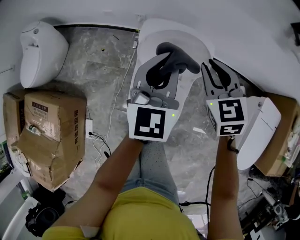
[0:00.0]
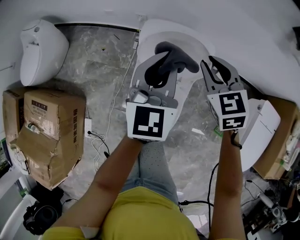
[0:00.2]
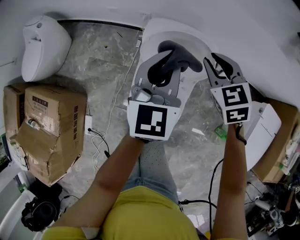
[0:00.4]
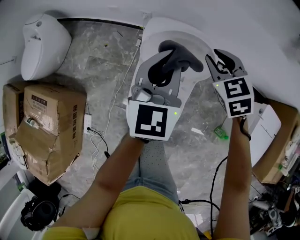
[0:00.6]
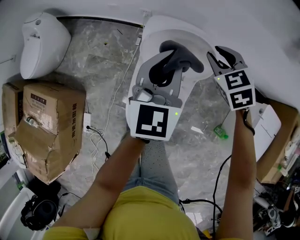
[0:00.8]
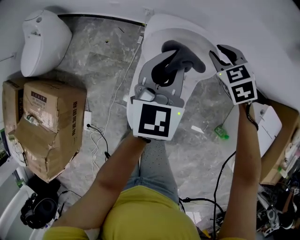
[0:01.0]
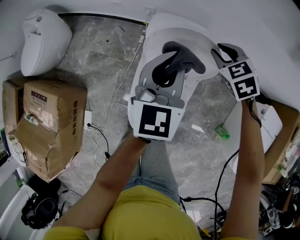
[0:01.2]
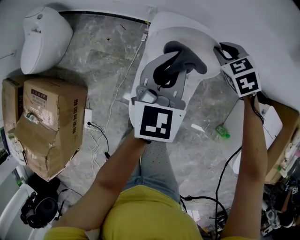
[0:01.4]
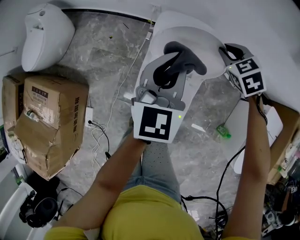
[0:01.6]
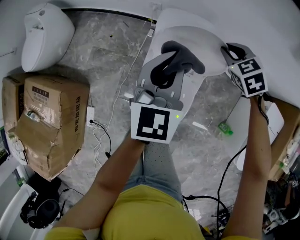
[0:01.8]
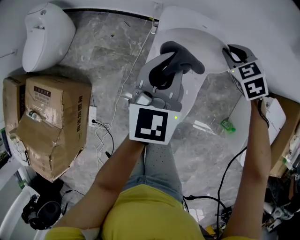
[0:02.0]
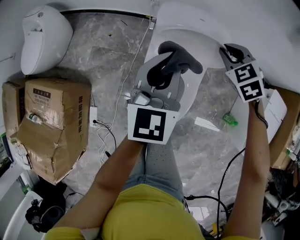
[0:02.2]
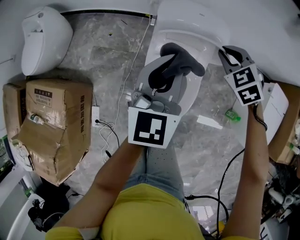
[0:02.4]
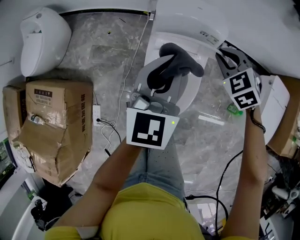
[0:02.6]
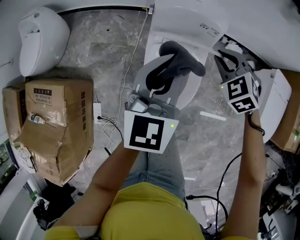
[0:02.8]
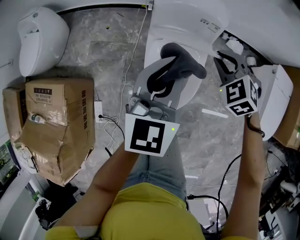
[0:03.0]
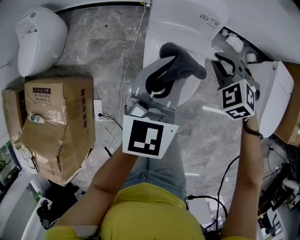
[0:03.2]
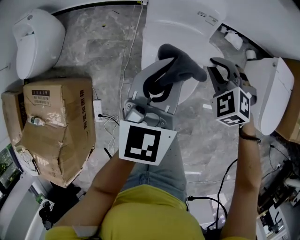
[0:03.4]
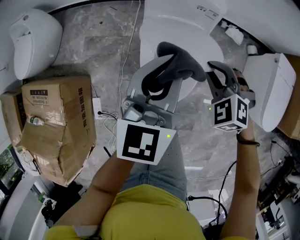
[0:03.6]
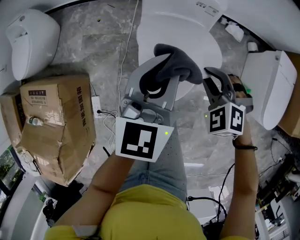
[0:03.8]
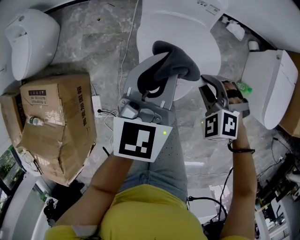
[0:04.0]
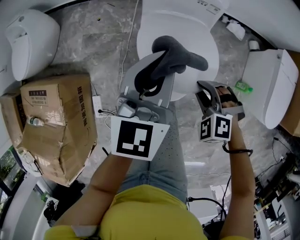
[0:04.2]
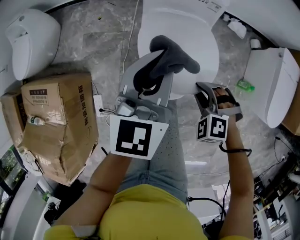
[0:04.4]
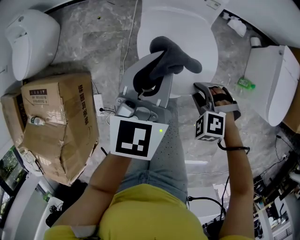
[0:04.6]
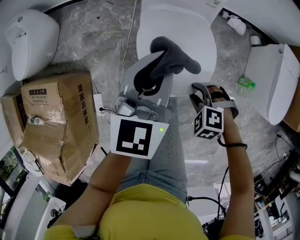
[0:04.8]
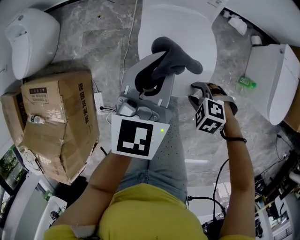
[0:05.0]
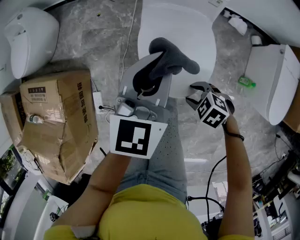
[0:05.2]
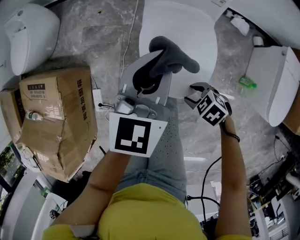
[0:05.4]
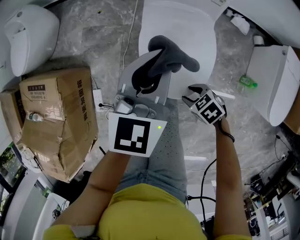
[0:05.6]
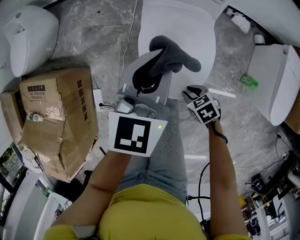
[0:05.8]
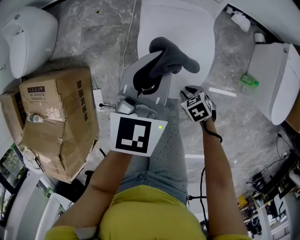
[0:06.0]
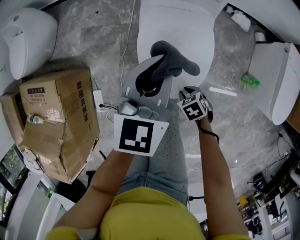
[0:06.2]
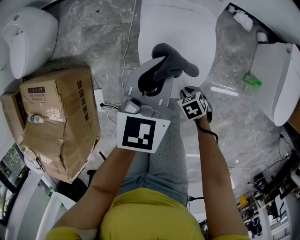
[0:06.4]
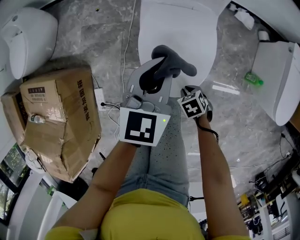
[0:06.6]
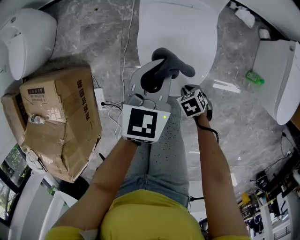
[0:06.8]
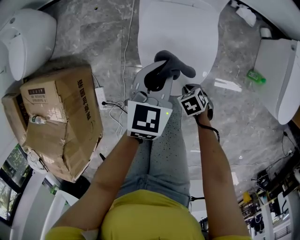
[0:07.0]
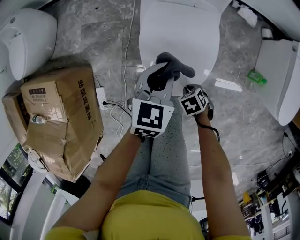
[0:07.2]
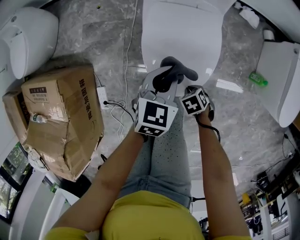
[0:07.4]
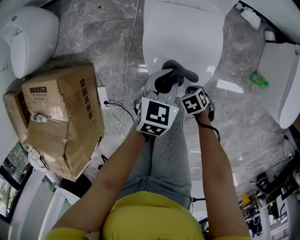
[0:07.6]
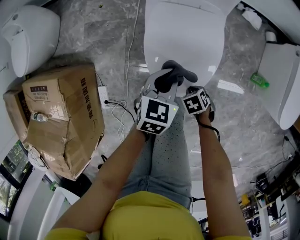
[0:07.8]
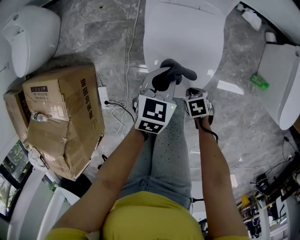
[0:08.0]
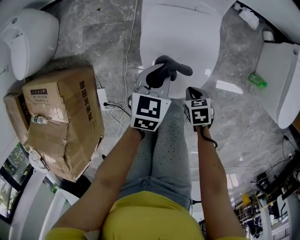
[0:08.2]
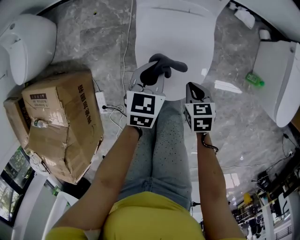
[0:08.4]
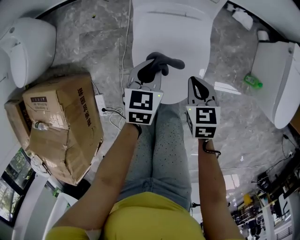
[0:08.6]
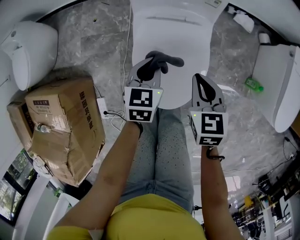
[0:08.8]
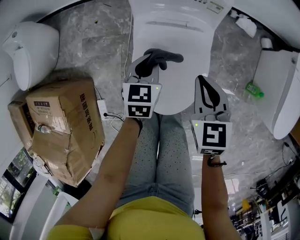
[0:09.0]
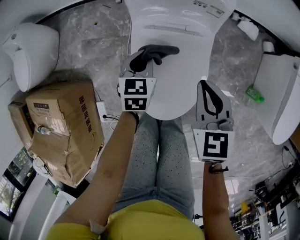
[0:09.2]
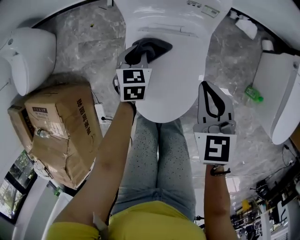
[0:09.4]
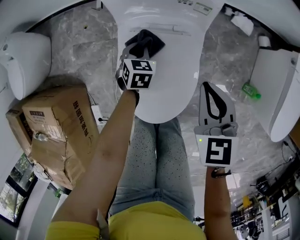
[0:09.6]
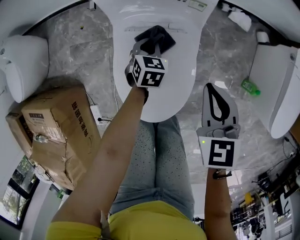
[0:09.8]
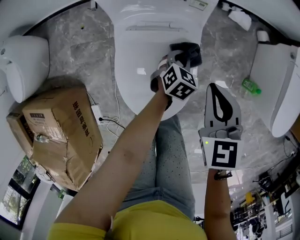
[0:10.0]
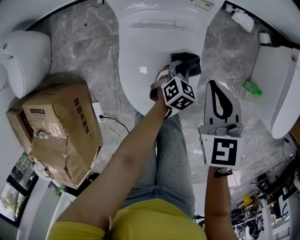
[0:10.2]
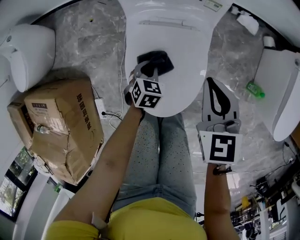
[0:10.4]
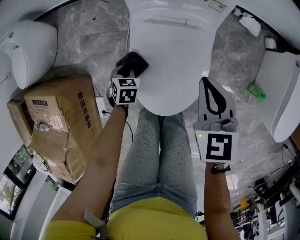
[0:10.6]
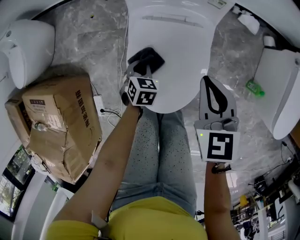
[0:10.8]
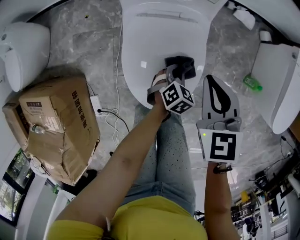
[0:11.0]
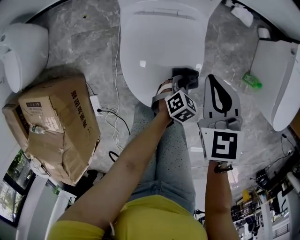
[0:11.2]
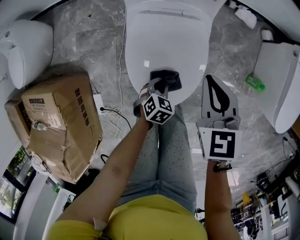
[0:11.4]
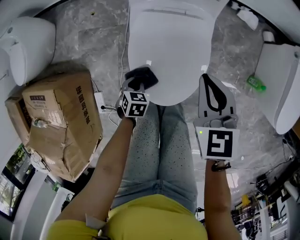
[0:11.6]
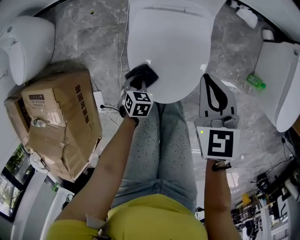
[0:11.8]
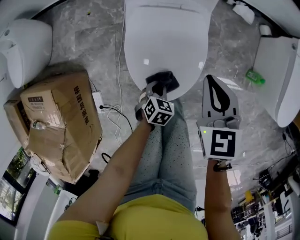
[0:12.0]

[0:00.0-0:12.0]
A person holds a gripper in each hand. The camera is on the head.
0:00.0 to 0:01.6: The right gripper heads downward and forward, covering some 10 cm, and turns by some 30 degrees.
0:01.6 to 0:03.0: Both grippers travel together backward, about 20 cm.
0:03.0 to 0:04.4: The right gripper travels backward and downward by roughly 20 cm. The left gripper ends up about 5 cm from where it was.
0:04.4 to 0:06.0: The right gripper is displaced downward by about 15 cm, and rotates around the line of its fingers by approximately 50 degrees, clockwise from behind.
0:06.0 to 0:07.6: The left gripper goes roughly 20 cm downward, and rotates roughly 30 degrees, while the right gripper moves downward, about 10 cm.
0:07.6 to 0:09.0: The left gripper ends up about 15 cm from where it was, while the right gripper goes approximately 25 cm upward, and tilts its fingers about 40 degrees upward.
0:09.0 to 0:10.4: The left gripper travels downward by approximately 15 cm, moves about 20 cm to the right and comes back, and turns by approximately 20 degrees.
0:10.4 to 0:12.0: The left gripper moves approximately 20 cm. The right gripper changes place by some 10 cm.

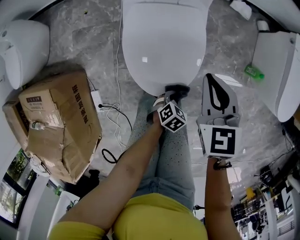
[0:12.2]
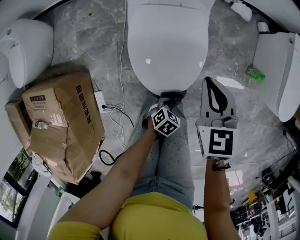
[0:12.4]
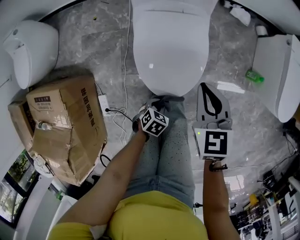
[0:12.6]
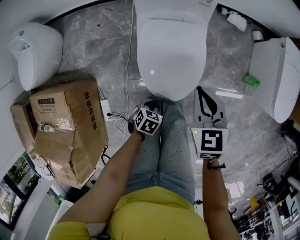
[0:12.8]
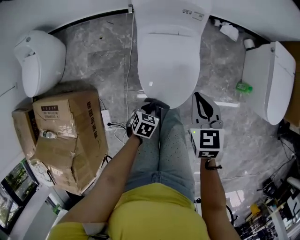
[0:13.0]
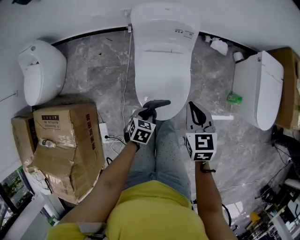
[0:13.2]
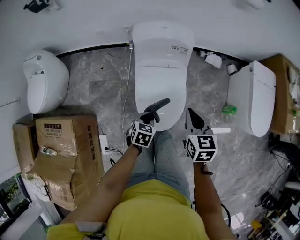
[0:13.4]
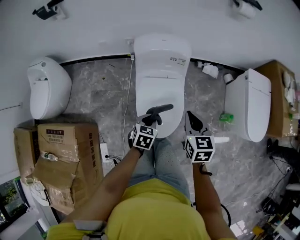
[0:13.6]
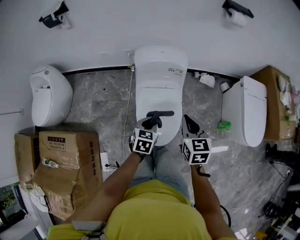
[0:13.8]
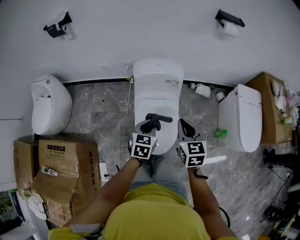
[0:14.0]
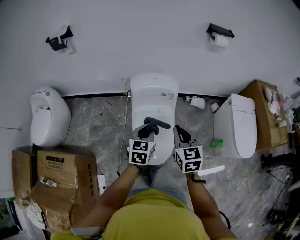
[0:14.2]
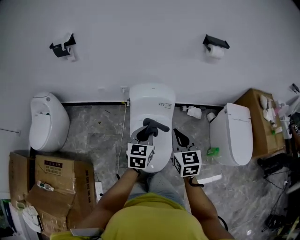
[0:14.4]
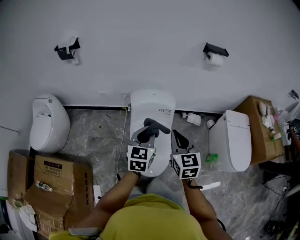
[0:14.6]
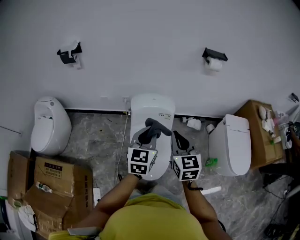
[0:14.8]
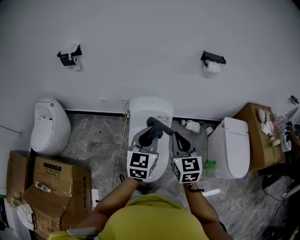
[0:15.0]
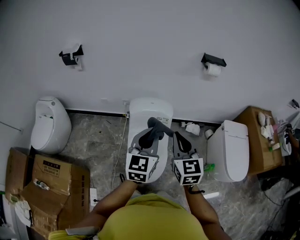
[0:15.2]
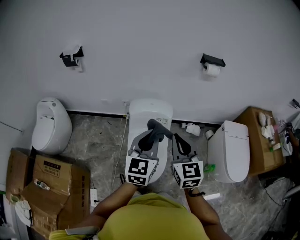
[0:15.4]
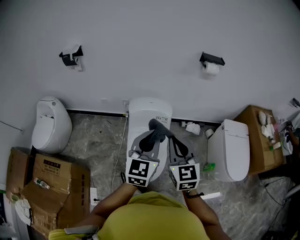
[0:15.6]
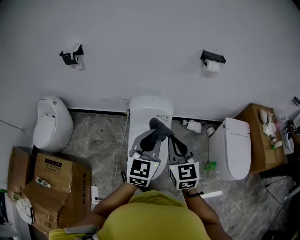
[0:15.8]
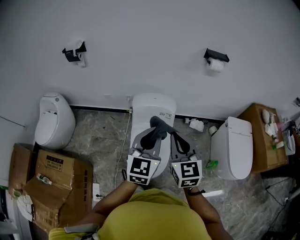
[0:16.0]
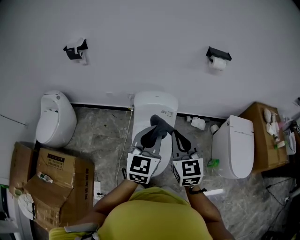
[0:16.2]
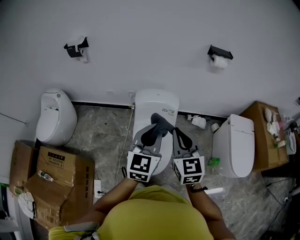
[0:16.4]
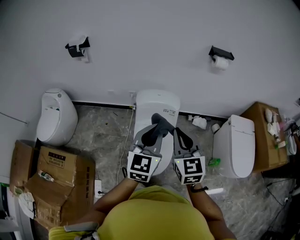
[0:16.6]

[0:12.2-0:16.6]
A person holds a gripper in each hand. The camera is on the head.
0:12.2 to 0:13.6: The left gripper is displaced upward and to the left by some 30 cm, and rotates roughly 30 degrees, while the right gripper travels upward by some 15 cm.
0:13.6 to 0:15.2: The left gripper heads upward, covering about 35 cm, and angles its fingers upward, by roughly 40 degrees, while the right gripper goes approximately 25 cm upward, and changes its angle by some 30 degrees.
0:15.2 to 0:16.6: The grippers move only a little.

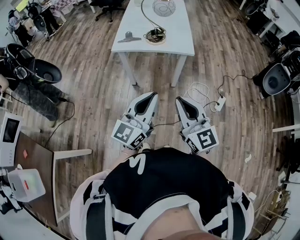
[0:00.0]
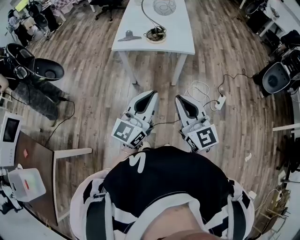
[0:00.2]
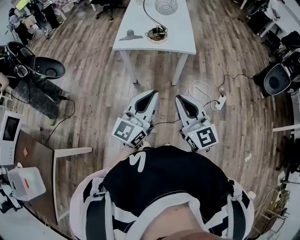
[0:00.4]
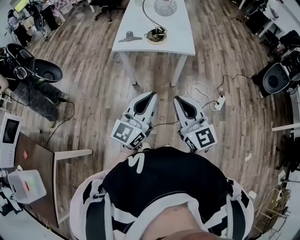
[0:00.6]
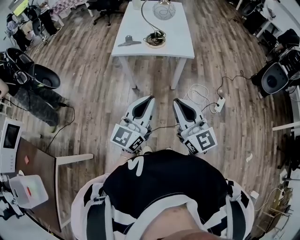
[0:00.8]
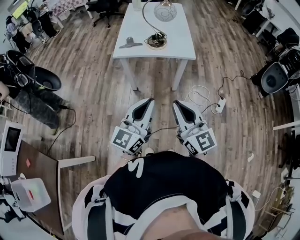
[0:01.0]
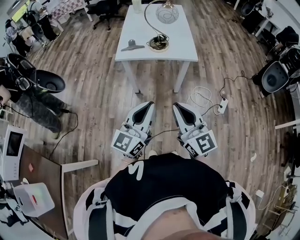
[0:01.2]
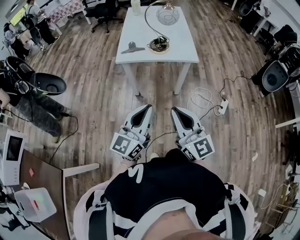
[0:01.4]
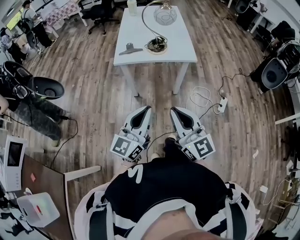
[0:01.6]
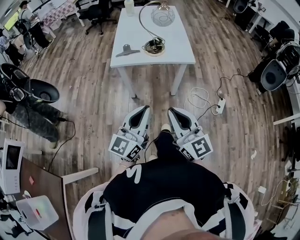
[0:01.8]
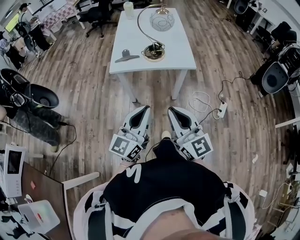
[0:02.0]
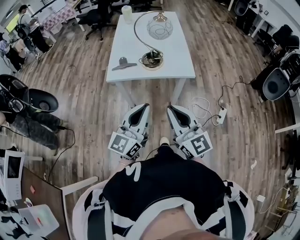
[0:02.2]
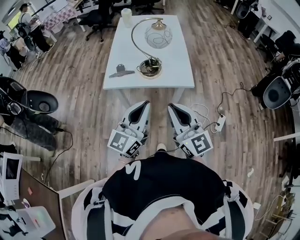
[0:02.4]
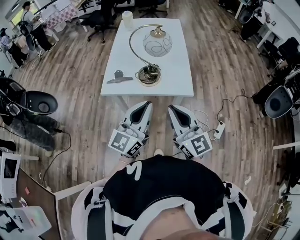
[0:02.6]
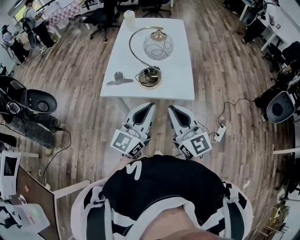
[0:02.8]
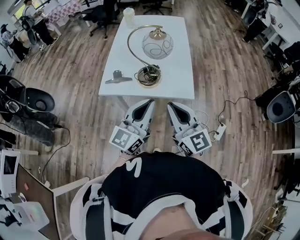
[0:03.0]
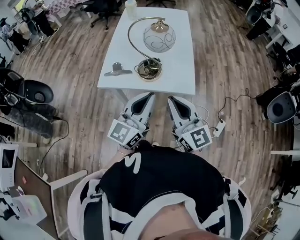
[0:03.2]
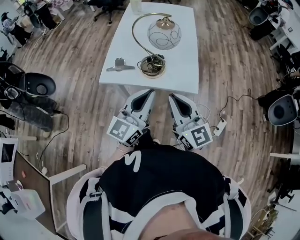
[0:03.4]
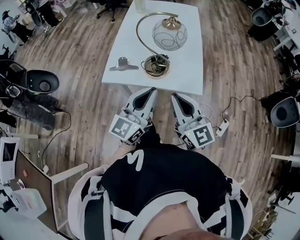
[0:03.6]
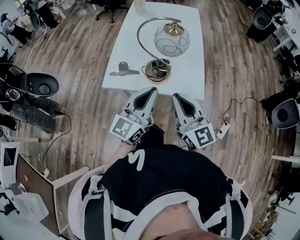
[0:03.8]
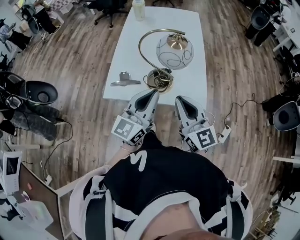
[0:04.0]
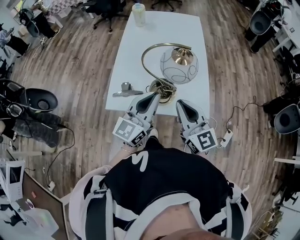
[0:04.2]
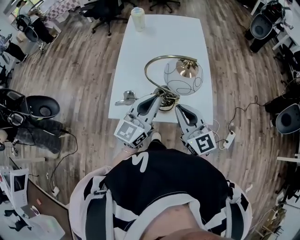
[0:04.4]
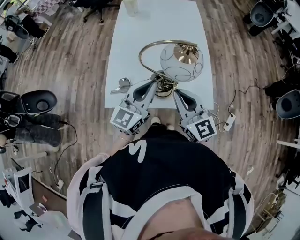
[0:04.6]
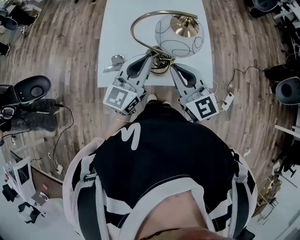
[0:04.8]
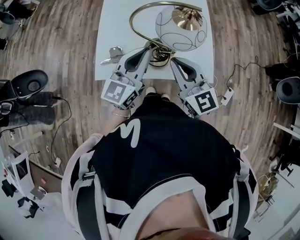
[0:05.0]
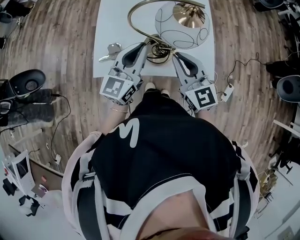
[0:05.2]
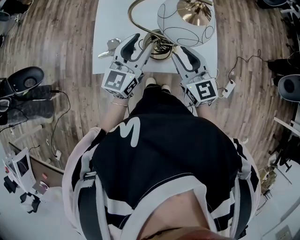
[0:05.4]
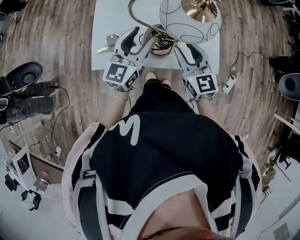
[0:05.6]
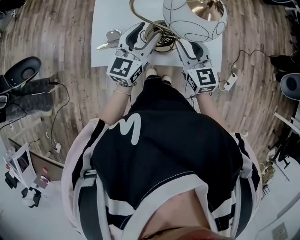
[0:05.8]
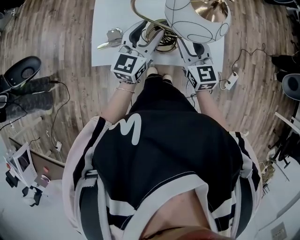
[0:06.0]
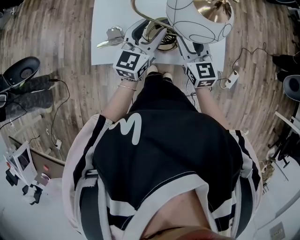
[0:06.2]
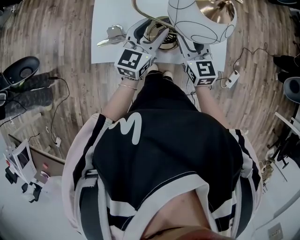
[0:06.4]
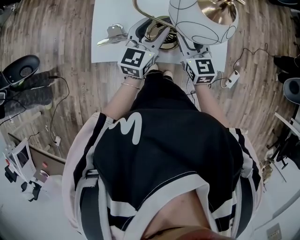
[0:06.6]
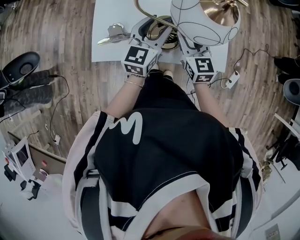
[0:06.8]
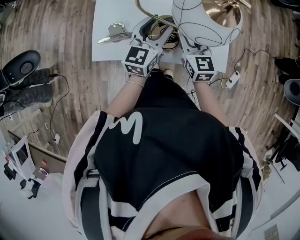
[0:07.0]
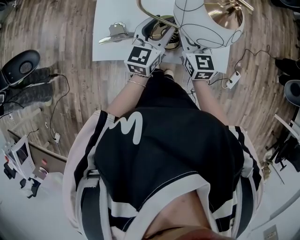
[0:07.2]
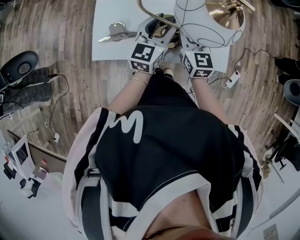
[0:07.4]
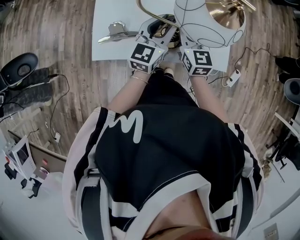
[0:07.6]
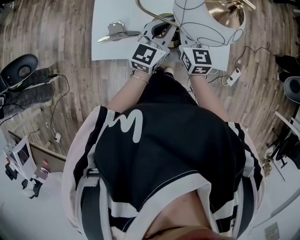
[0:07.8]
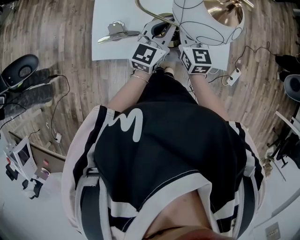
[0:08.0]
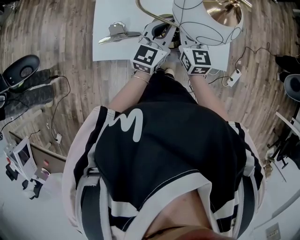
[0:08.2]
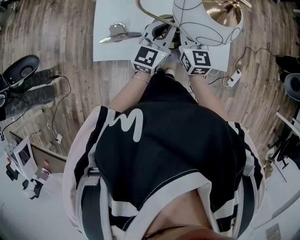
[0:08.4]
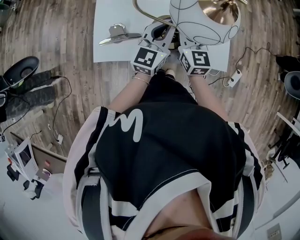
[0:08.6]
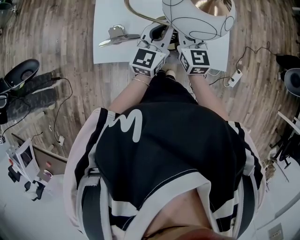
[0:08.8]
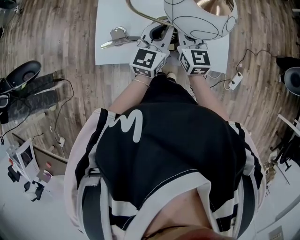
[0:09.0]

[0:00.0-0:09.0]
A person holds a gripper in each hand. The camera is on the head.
0:00.0 to 0:01.6: Both grippers travel together to the left, about 10 cm.
0:01.6 to 0:03.0: The grippers both shift forward by about 30 cm.
0:03.0 to 0:04.4: The grippers both shift forward by some 20 cm.
0:04.4 to 0:06.0: The grippers both shift downward and forward by roughly 15 cm. The right gripper opens its fingers. Meanwhile the left gripper opens up.
0:06.0 to 0:07.6: The right gripper is displaced forward by some 5 cm. Meanwhile the left gripper ends up about 5 cm from where it was, and closes.
0:07.6 to 0:09.0: The left gripper closes up.
